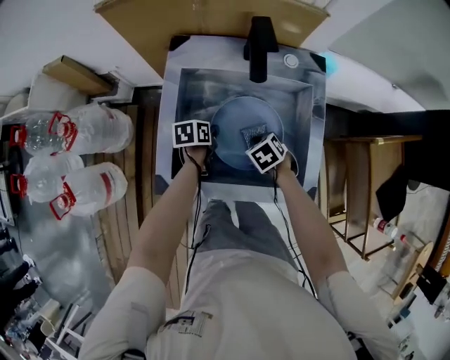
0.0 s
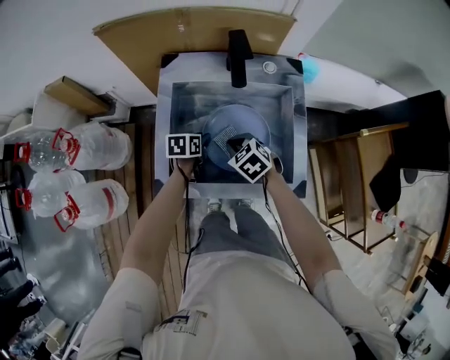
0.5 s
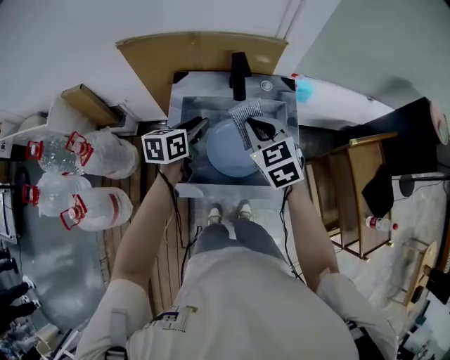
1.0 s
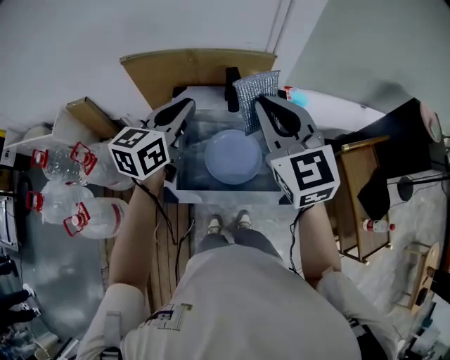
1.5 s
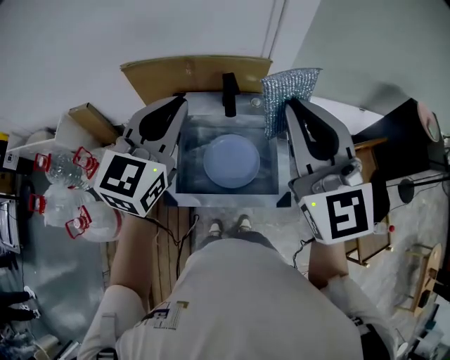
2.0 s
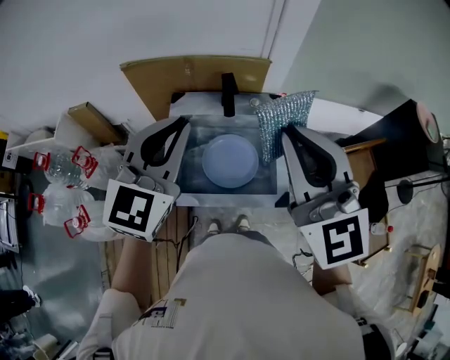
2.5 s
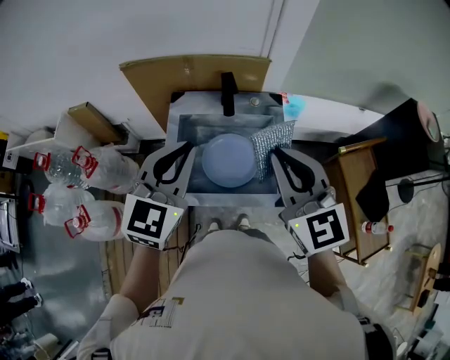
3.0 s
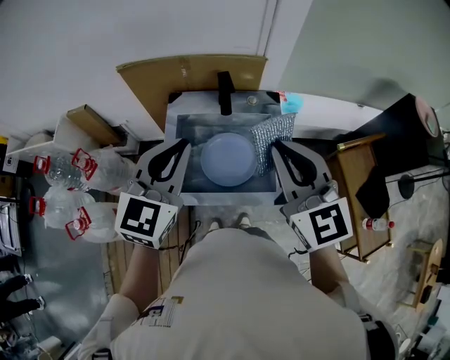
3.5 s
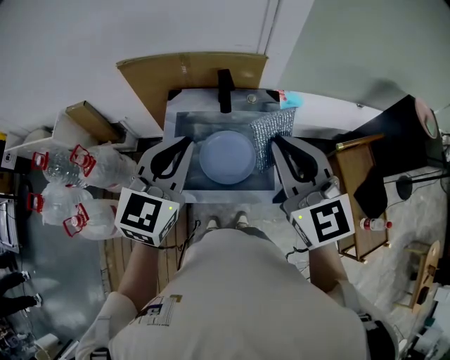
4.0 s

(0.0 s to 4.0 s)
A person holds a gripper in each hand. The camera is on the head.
0.0 s - 2.0 s: Both grippers travel together upward, about 60 cm. The right gripper tilts its fingers about 70 degrees upward, while the left gripper tips its fingers upward by approximately 50 degrees.
2.0 s - 4.0 s: The right gripper moves downward, some 10 cm. Meanwhile the left gripper shifts some 10 cm downward and backward.

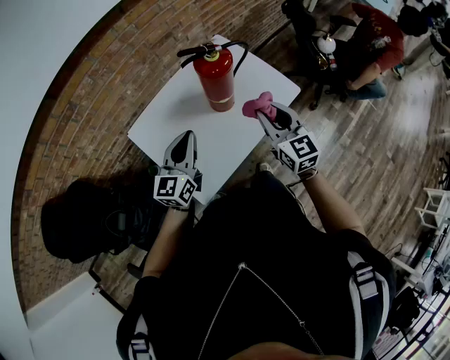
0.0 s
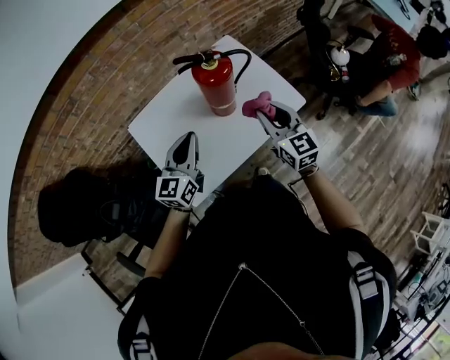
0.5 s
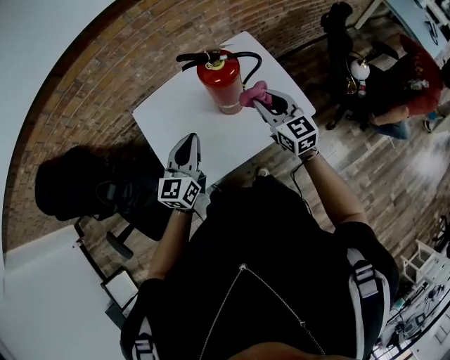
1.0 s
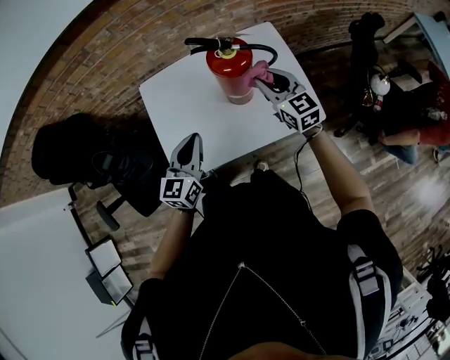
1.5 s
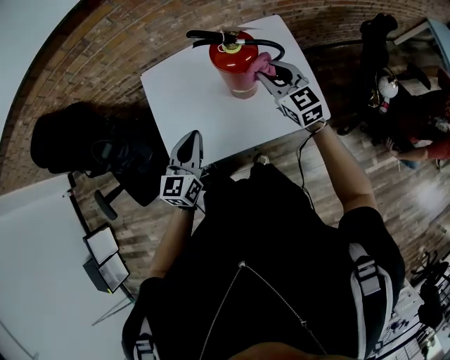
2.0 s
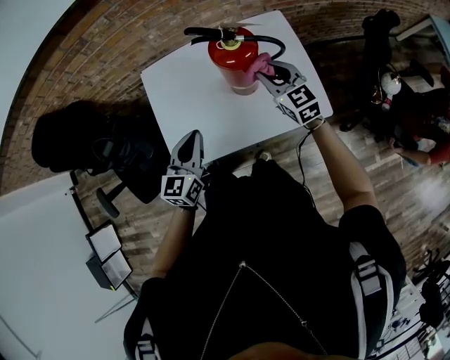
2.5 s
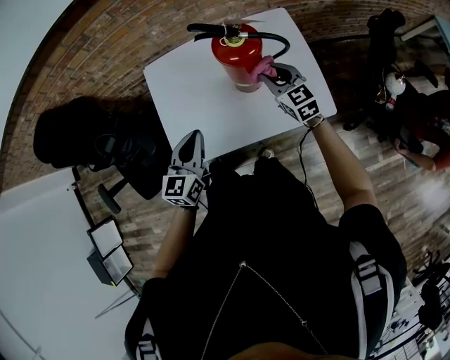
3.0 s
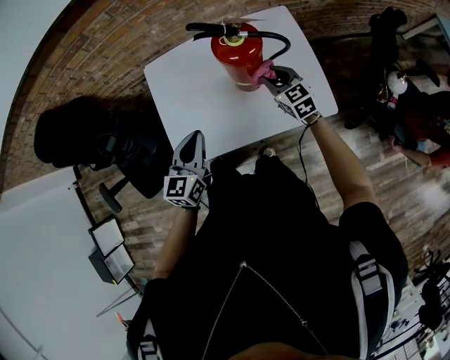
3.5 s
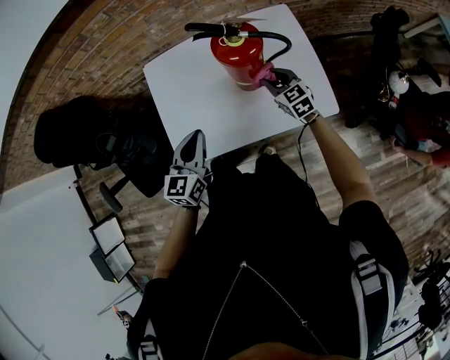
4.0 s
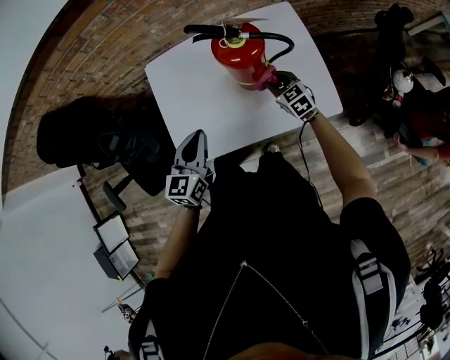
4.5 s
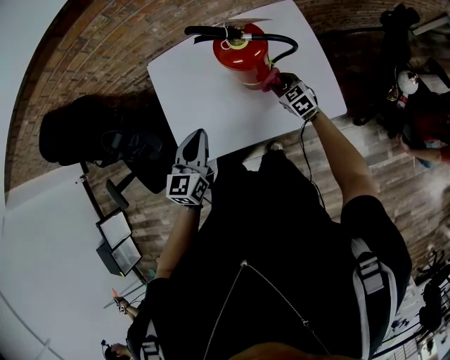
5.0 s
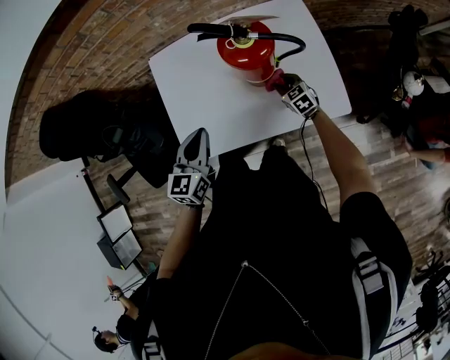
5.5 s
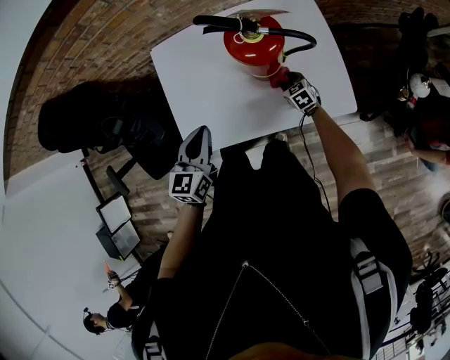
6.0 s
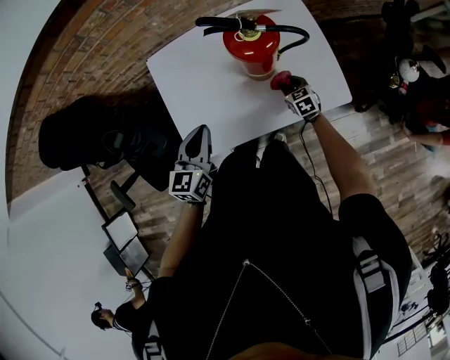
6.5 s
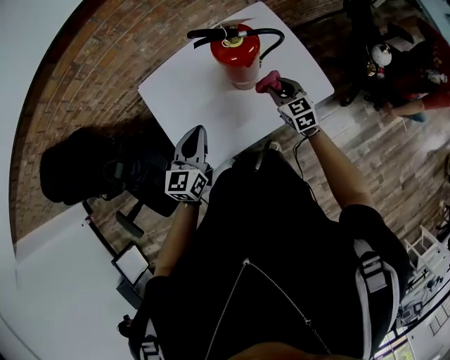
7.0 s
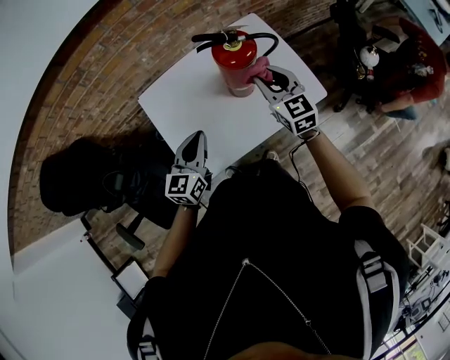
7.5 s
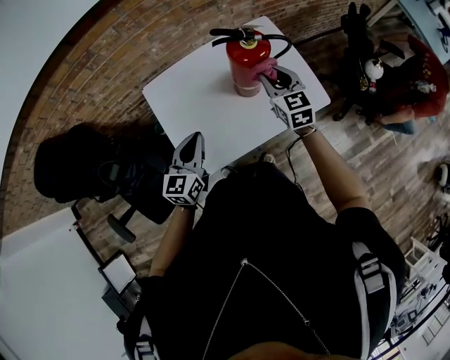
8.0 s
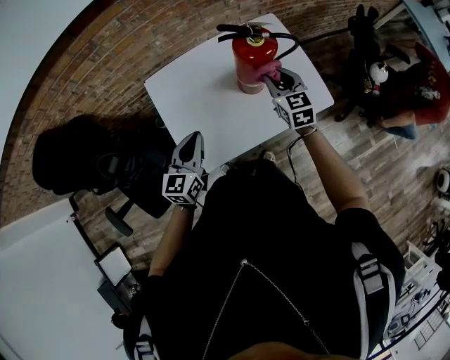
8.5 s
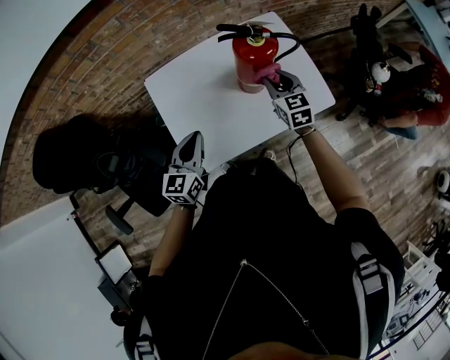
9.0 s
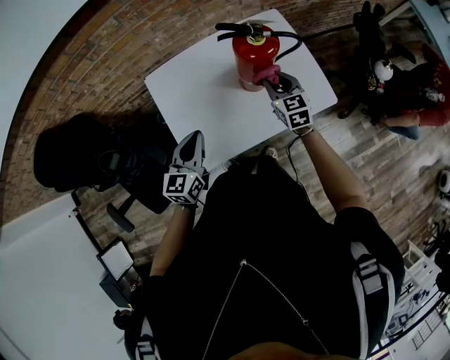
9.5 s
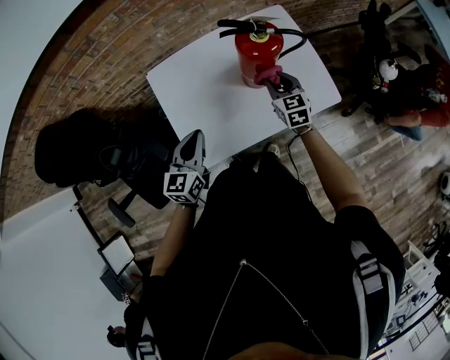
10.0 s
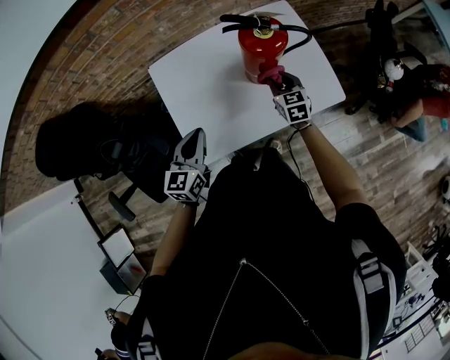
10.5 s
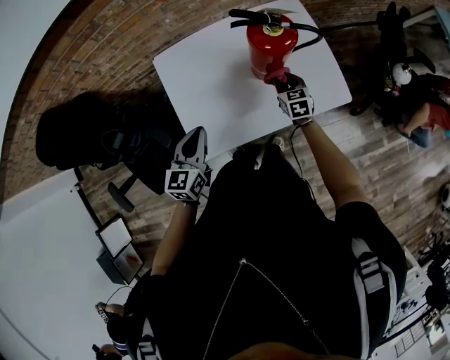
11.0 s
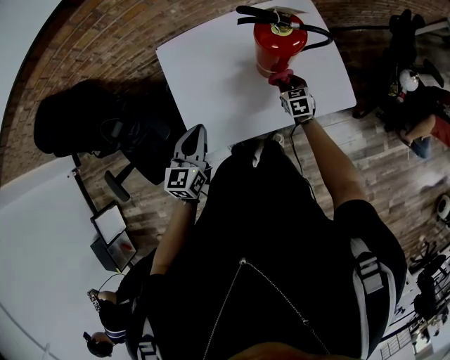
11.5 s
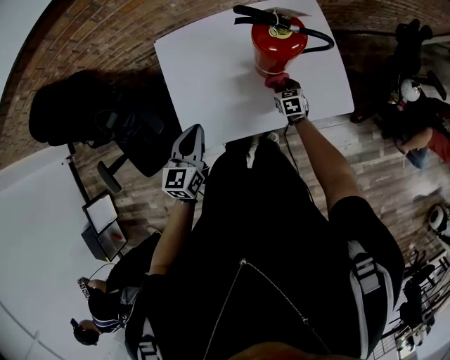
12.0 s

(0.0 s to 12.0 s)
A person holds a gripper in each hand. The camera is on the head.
0.0 s - 2.0 s: The right gripper ends up roughly 20 cm from where it was, and turns by about 40 degrees. The left gripper shifts roughly 5 cm downward, and swivels approximately 30 degrees.
2.0 s - 4.0 s: The right gripper heads downward, covering roughly 15 cm.
4.0 s - 6.0 s: The right gripper heads downward, covering about 20 cm.
6.0 s - 8.0 s: The right gripper goes roughly 35 cm upward, and turns by about 40 degrees. Meanwhile the left gripper shifts roughly 10 cm to the left and upward.
8.0 s - 10.0 s: The right gripper is displaced downward by roughly 10 cm.
10.0 s - 12.0 s: The right gripper goes approximately 20 cm downward, and swivels approximately 20 degrees.

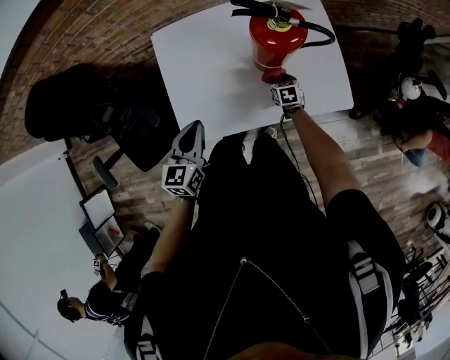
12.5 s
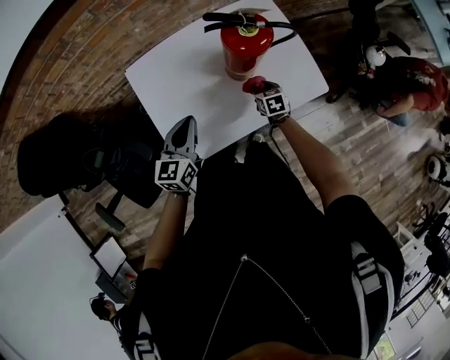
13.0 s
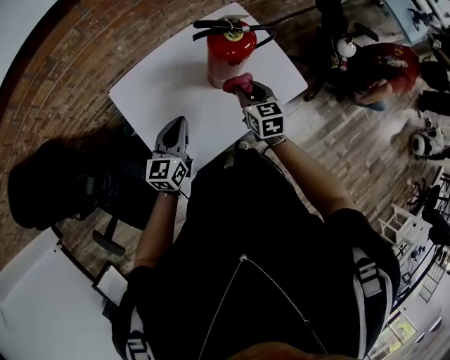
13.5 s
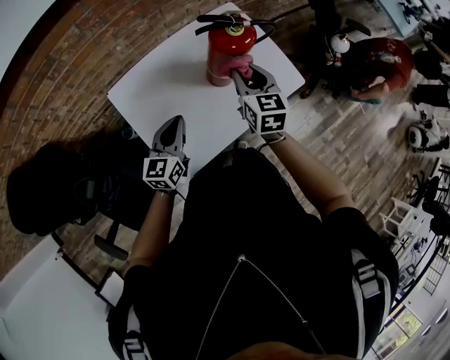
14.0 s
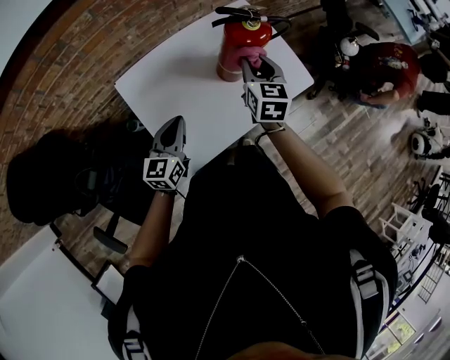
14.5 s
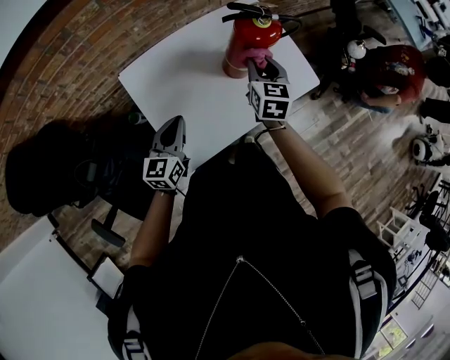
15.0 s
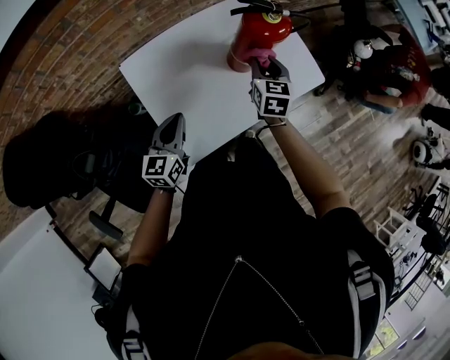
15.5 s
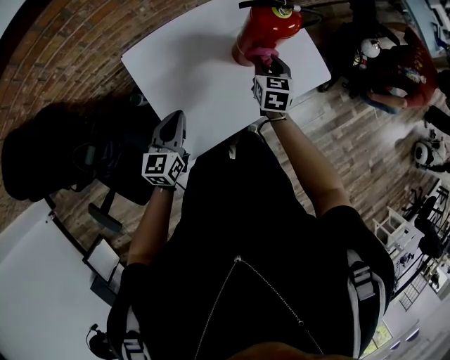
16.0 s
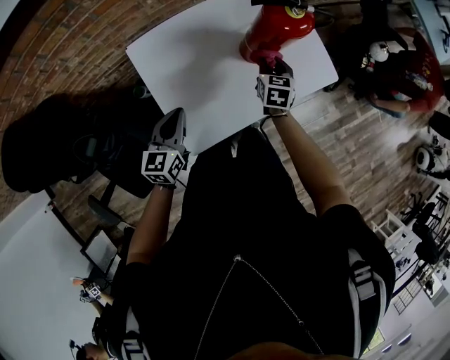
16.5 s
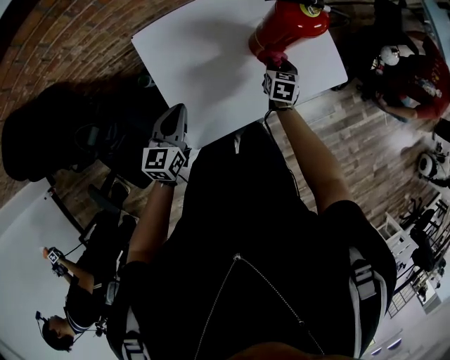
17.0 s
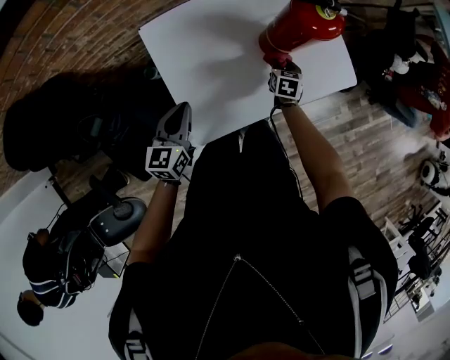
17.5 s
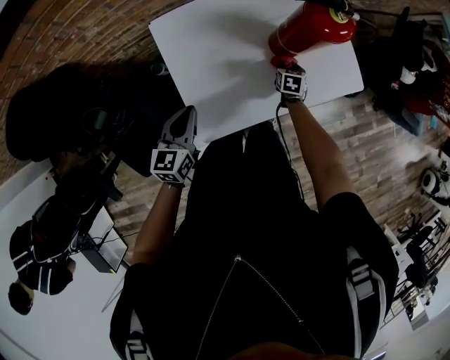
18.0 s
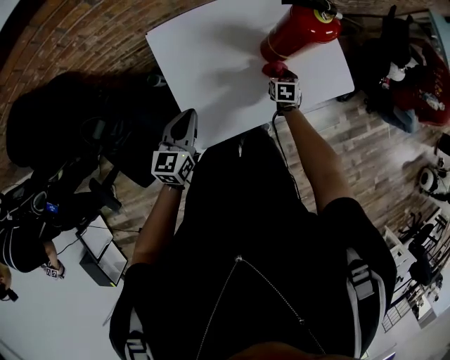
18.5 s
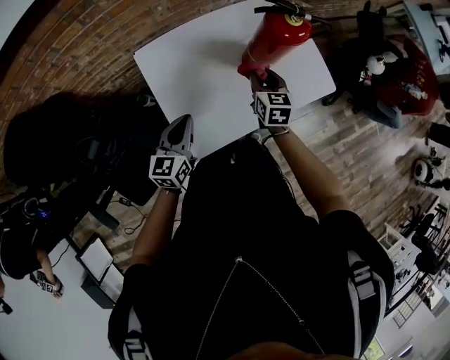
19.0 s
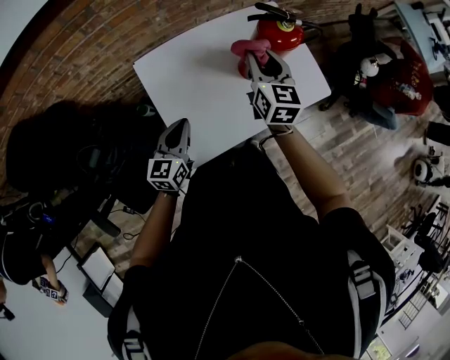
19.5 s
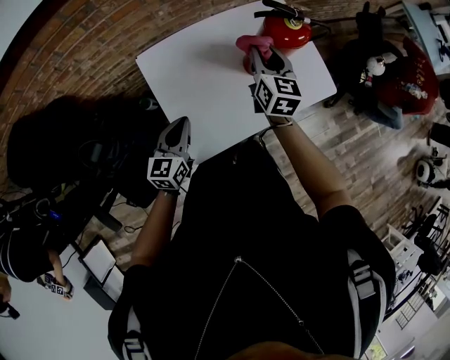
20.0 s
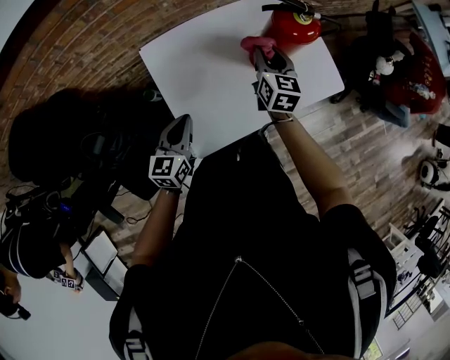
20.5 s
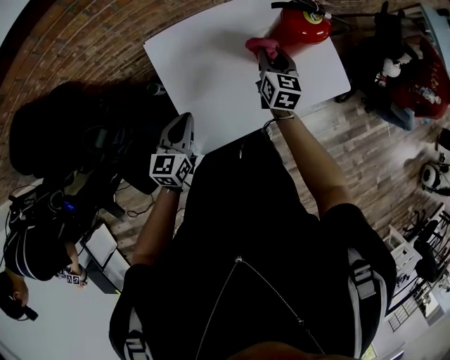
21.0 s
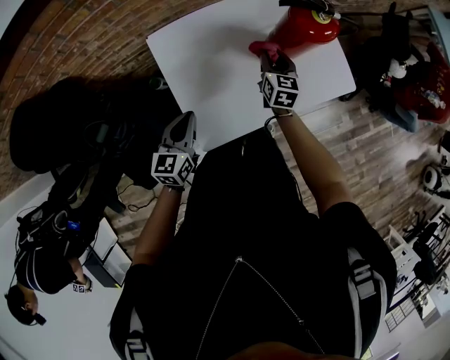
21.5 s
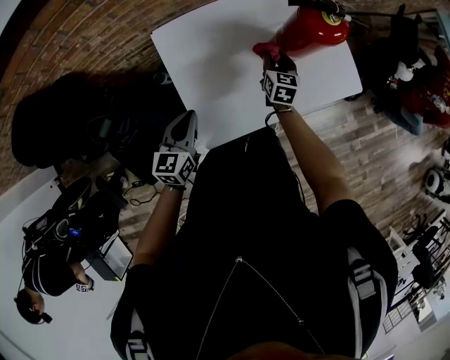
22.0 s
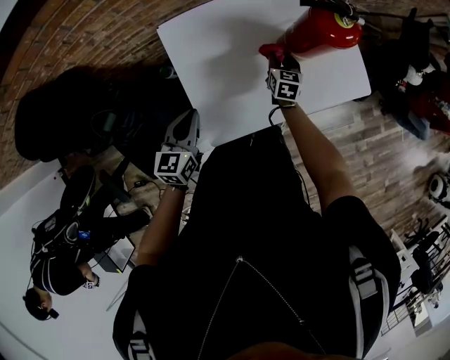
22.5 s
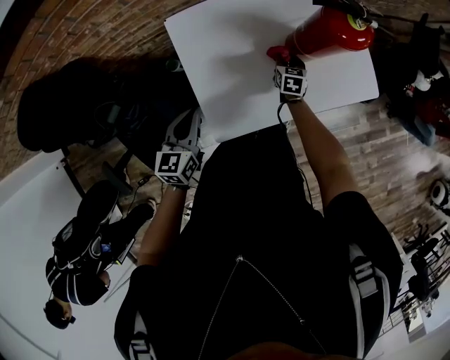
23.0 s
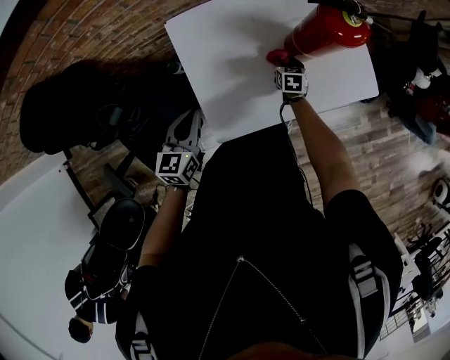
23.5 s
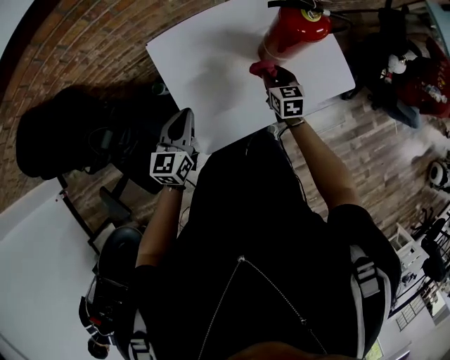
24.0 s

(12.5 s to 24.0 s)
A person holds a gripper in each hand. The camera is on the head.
12.5 s - 14.5 s: The right gripper heads upward, covering some 35 cm, and turns by roughly 40 degrees. The left gripper shifts by about 10 cm, and changes its angle by approximately 30 degrees.
14.5 s - 16.5 s: The left gripper ends up roughly 5 cm from where it was; the right gripper is displaced downward by approximately 15 cm.
16.5 s - 18.5 s: The right gripper goes roughly 15 cm downward.
18.5 s - 20.0 s: The right gripper moves upward, roughly 30 cm, and angles its fingers upward, by some 40 degrees.
20.0 s - 22.0 s: The right gripper travels downward by approximately 20 cm.
22.0 s - 24.0 s: The right gripper is displaced backward by approximately 5 cm, and reaches roughly 15 cm downward, then returns.
